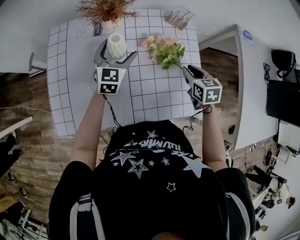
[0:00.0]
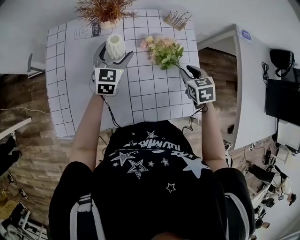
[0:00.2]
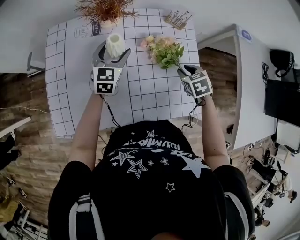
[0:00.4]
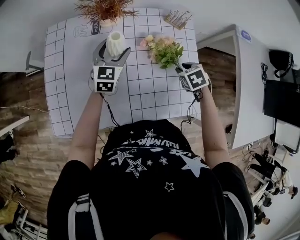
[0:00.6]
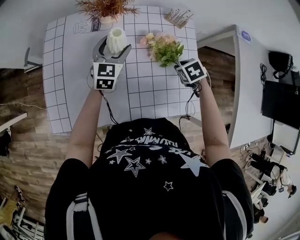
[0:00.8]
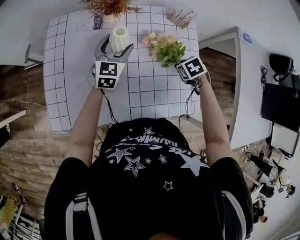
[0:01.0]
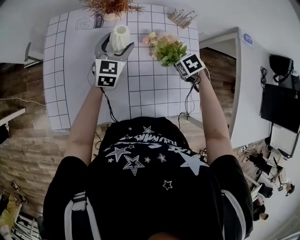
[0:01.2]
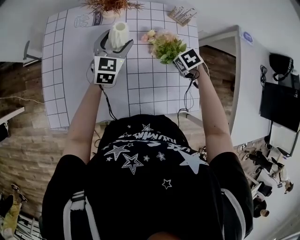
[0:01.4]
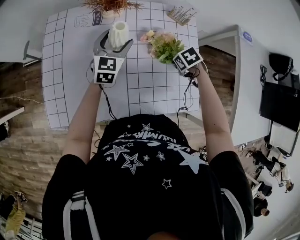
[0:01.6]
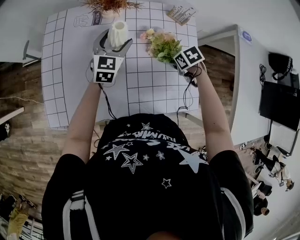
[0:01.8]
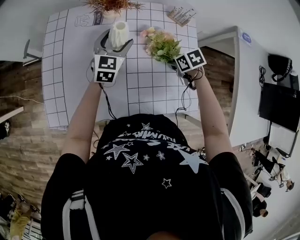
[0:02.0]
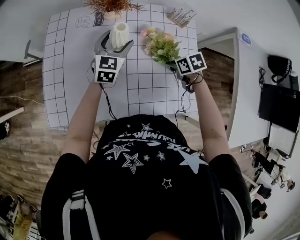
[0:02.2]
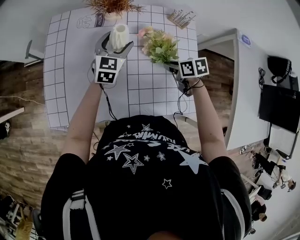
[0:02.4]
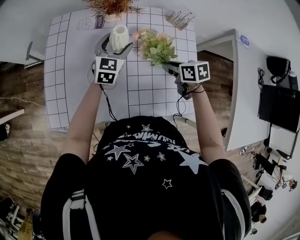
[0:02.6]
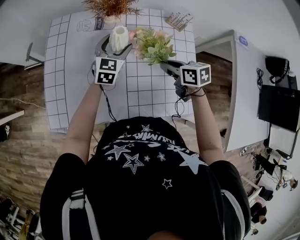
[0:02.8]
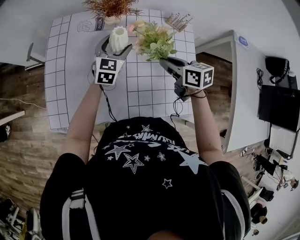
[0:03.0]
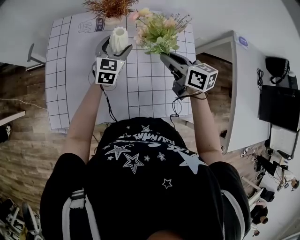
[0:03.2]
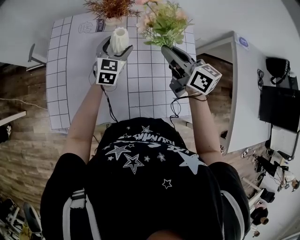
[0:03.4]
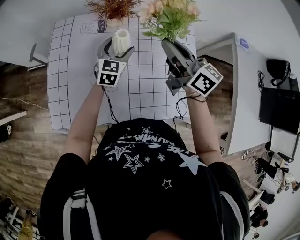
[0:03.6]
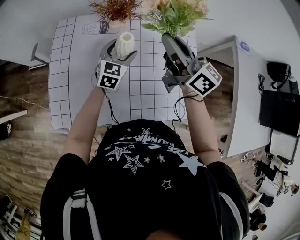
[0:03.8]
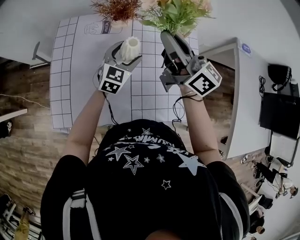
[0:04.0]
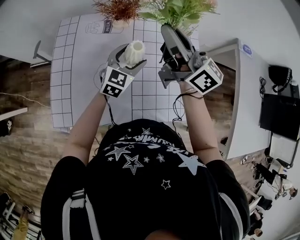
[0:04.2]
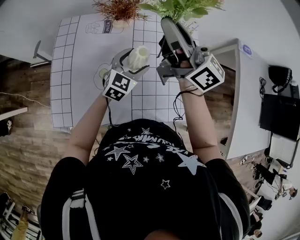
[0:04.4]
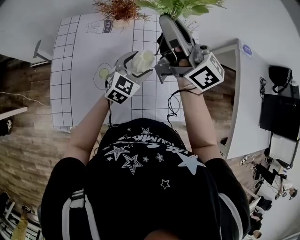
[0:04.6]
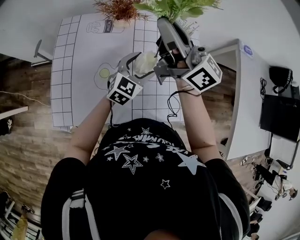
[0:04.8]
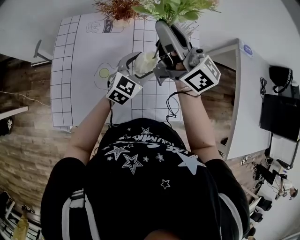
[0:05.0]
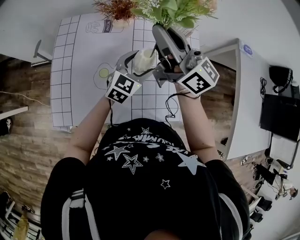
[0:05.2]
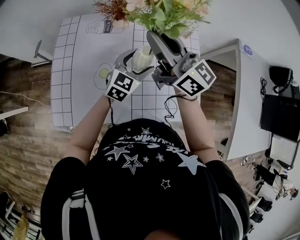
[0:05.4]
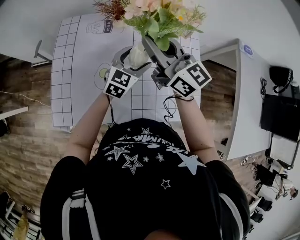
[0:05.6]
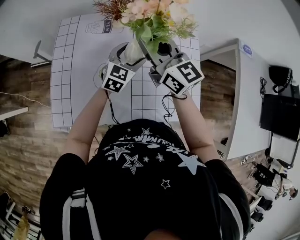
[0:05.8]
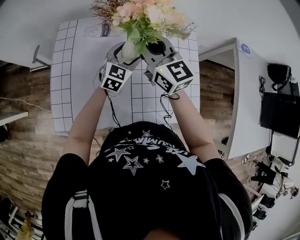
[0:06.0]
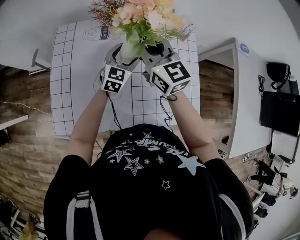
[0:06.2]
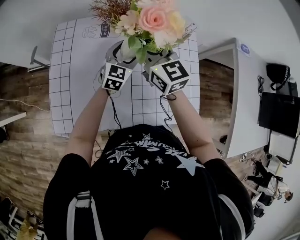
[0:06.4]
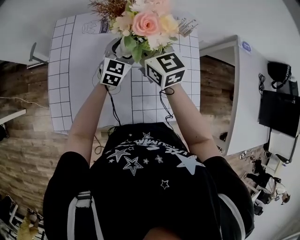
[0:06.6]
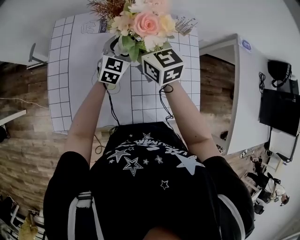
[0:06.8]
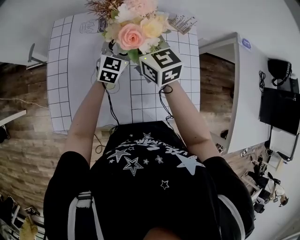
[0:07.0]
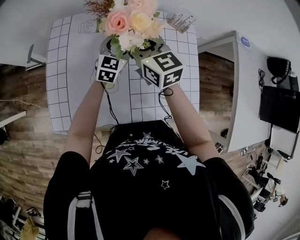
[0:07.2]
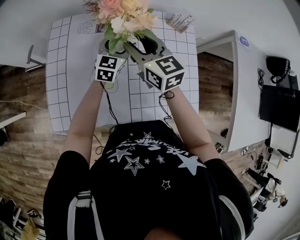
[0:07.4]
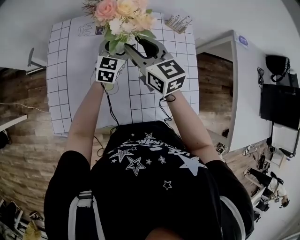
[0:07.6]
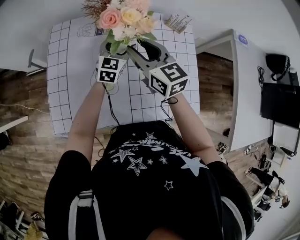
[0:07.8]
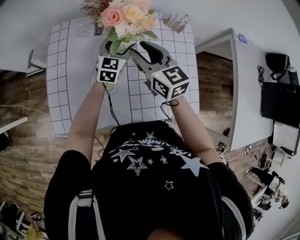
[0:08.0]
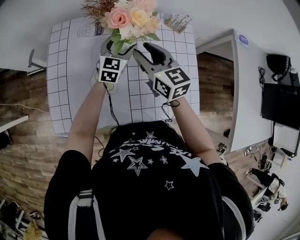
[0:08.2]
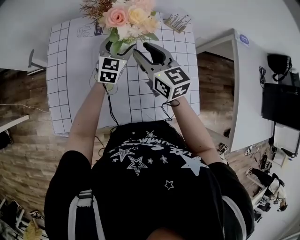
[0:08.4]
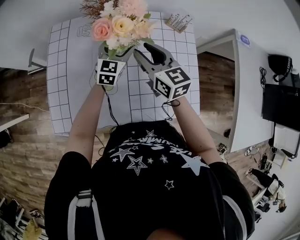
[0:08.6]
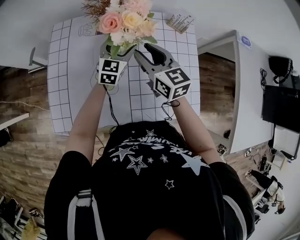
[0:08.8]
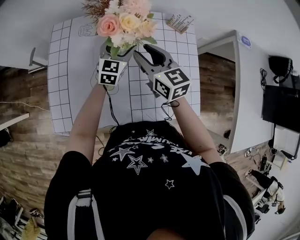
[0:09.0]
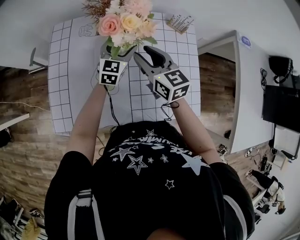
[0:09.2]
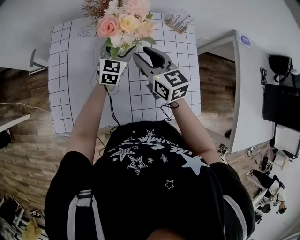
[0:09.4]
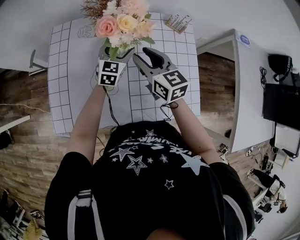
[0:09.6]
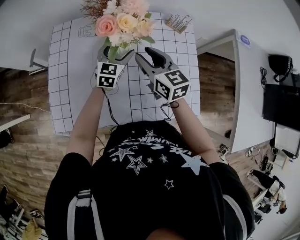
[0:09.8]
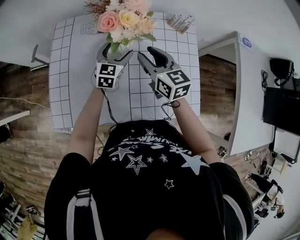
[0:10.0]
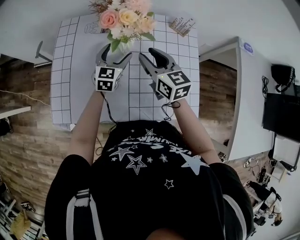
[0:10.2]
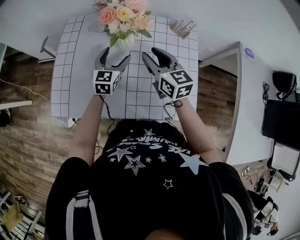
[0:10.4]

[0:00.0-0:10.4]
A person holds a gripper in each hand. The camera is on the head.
0:00.0 to 0:01.4: The right gripper moves downward, approximately 10 cm, and angles its fingers downward, by some 40 degrees.
0:01.4 to 0:03.0: The right gripper heads upward, covering some 15 cm, and angles its fingers upward, by roughly 50 degrees.
0:03.0 to 0:04.4: The left gripper goes approximately 5 cm backward, while the right gripper goes about 25 cm upward, and tilts its fingers about 50 degrees upward.
0:04.4 to 0:06.0: The left gripper moves forward, about 5 cm, while the right gripper is displaced downward by some 10 cm, and changes its angle by some 40 degrees.
0:06.0 to 0:07.4: The right gripper opens up.
0:07.4 to 0:09.0: The right gripper changes place by roughly 5 cm.
0:09.0 to 0:10.4: The left gripper goes some 5 cm backward.

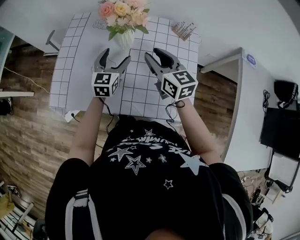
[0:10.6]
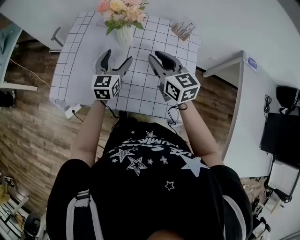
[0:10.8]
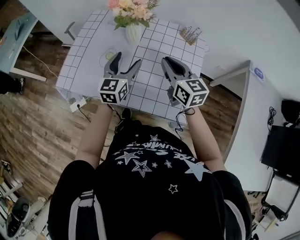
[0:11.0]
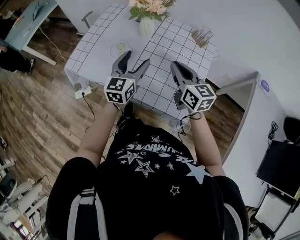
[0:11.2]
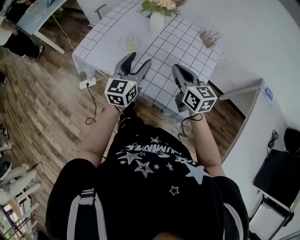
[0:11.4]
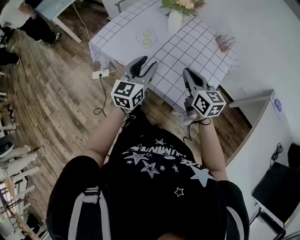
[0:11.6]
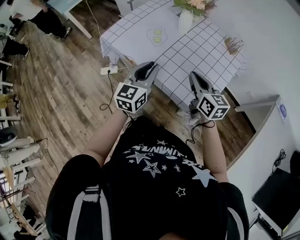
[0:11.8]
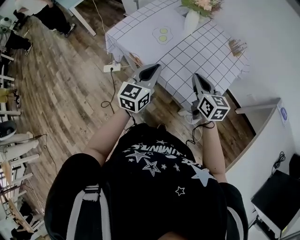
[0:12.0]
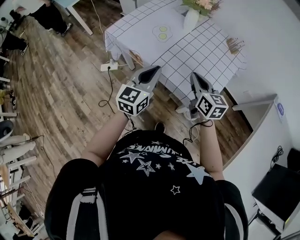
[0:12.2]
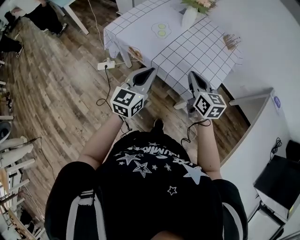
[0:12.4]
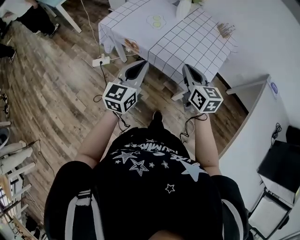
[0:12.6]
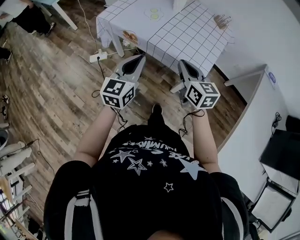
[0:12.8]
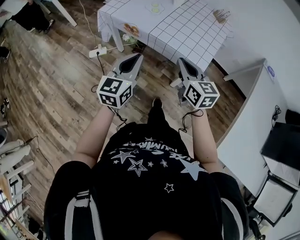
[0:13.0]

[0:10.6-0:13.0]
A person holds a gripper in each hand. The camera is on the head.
0:10.6 to 0:11.8: The two grippers go approximately 25 cm backward. The right gripper turns by some 20 degrees, and closes, while the left gripper changes its angle by roughly 20 degrees, and closes.
0:11.8 to 0:13.0: The two grippers go roughly 20 cm backward and to the left.

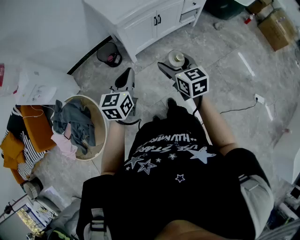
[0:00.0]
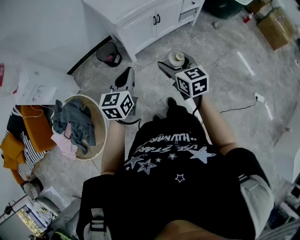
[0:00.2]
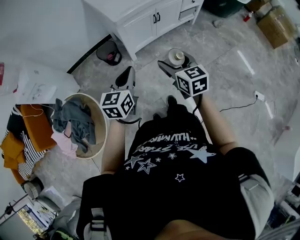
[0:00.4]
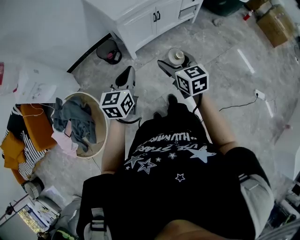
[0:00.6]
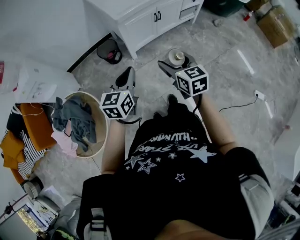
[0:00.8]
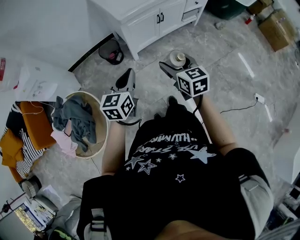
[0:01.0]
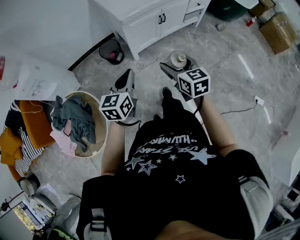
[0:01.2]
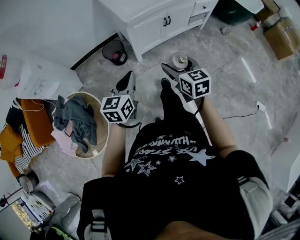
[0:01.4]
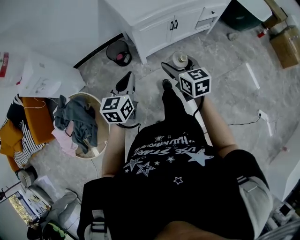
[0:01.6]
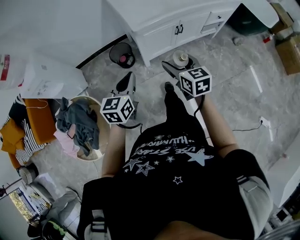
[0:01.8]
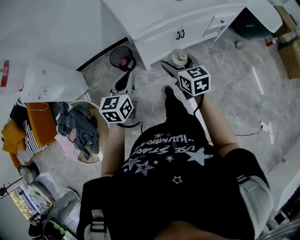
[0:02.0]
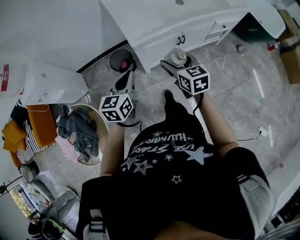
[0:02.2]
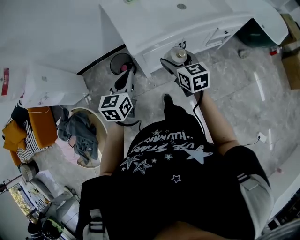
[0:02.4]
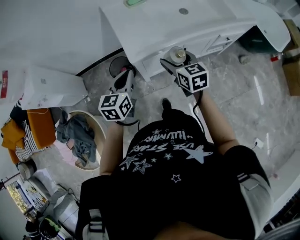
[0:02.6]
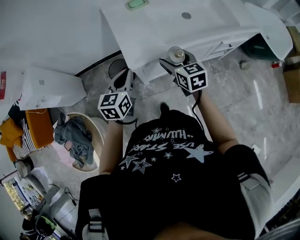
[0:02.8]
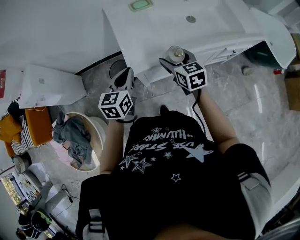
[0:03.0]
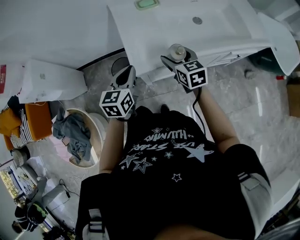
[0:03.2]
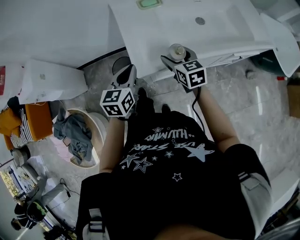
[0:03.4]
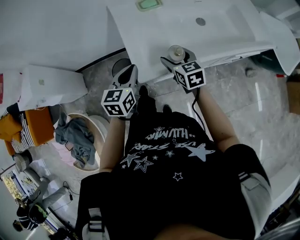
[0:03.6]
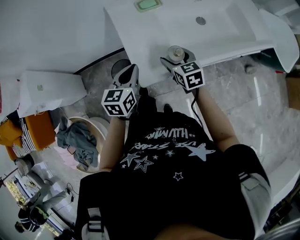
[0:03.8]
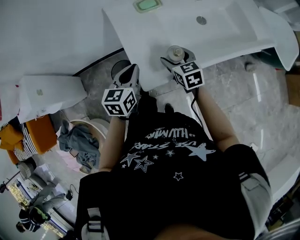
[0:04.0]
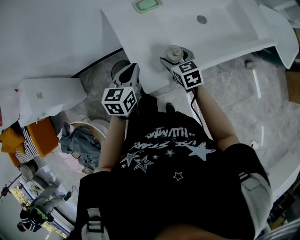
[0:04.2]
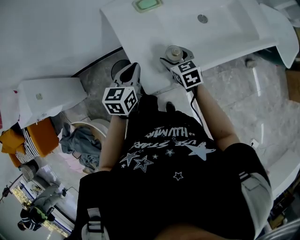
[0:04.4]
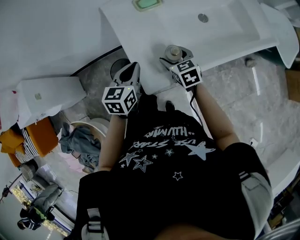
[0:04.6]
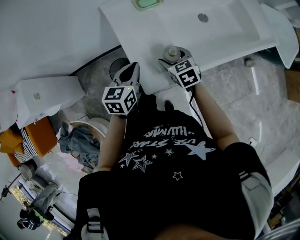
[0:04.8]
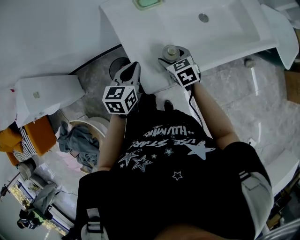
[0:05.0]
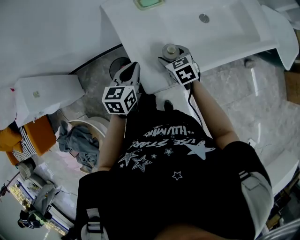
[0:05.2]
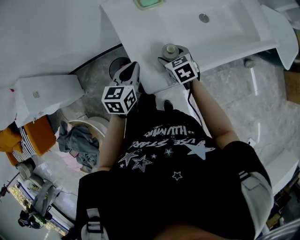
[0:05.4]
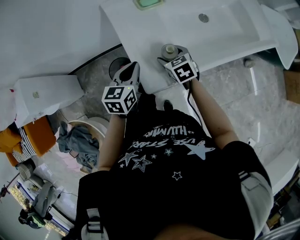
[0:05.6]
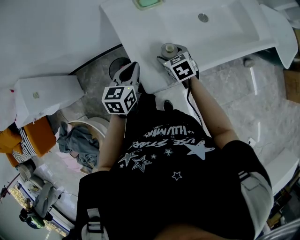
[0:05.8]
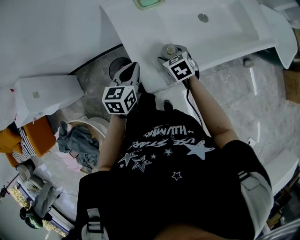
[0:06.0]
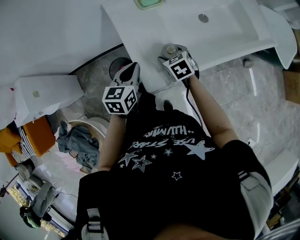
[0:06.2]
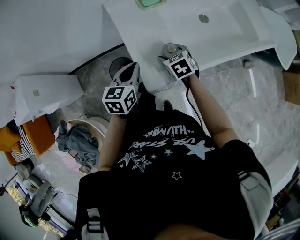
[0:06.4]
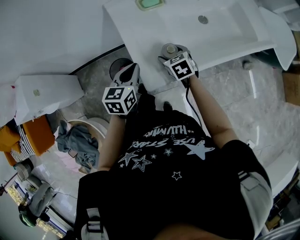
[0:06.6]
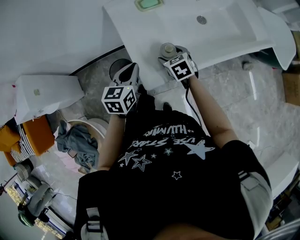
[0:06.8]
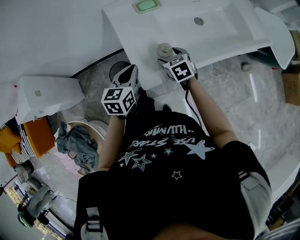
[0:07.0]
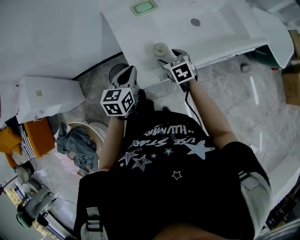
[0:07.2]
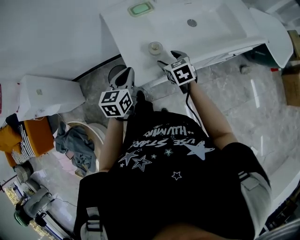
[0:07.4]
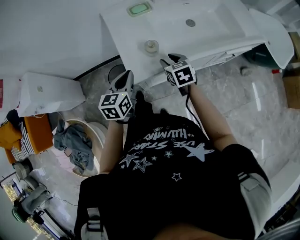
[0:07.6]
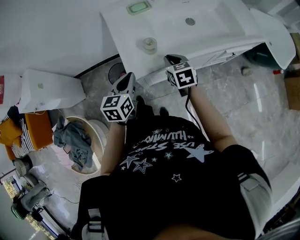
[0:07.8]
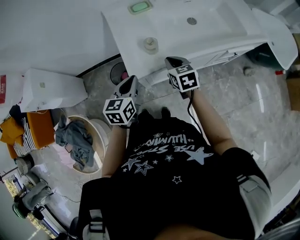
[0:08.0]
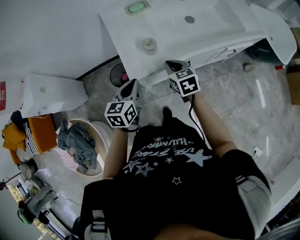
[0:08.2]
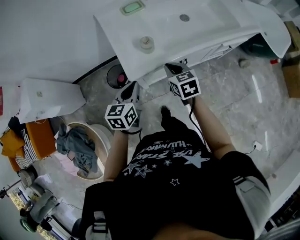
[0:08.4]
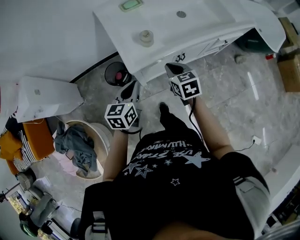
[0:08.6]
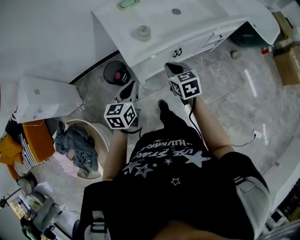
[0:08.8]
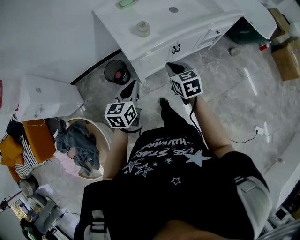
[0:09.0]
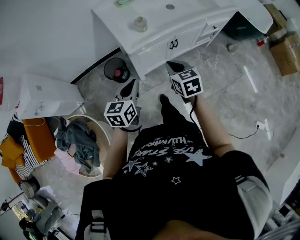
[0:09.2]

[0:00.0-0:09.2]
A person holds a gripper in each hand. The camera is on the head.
0:00.0 to 0:01.6: The left gripper goes some 10 cm to the left and forward; the right gripper travels forward by approximately 10 cm.
0:01.6 to 0:03.0: The grippers both shift forward by roughly 35 cm.
0:03.0 to 0:04.6: The right gripper goes about 15 cm forward, downward and to the left. The left gripper goes roughly 15 cm forward.
0:04.6 to 0:06.2: There are only small adjustments of the grippers.
0:06.2 to 0:07.6: The left gripper moves backward, some 10 cm; the right gripper heads backward, to the right and upward, covering roughly 15 cm, and closes up.
0:07.6 to 0:09.2: Both grippers travel together backward, approximately 25 cm. The right gripper closes its fingers.

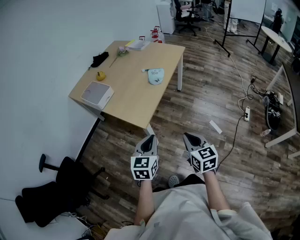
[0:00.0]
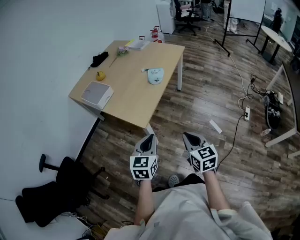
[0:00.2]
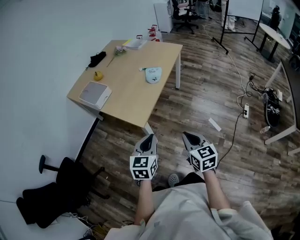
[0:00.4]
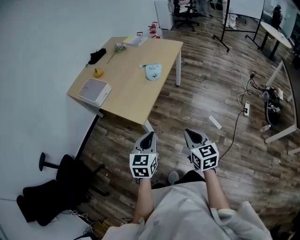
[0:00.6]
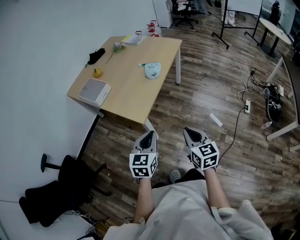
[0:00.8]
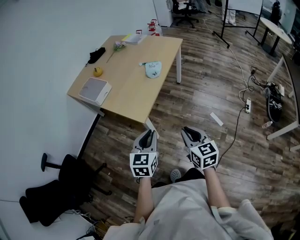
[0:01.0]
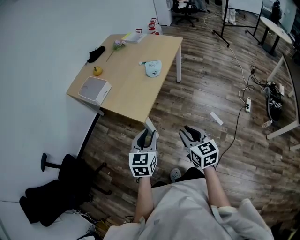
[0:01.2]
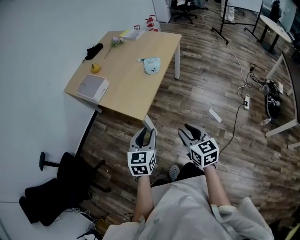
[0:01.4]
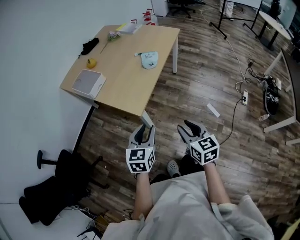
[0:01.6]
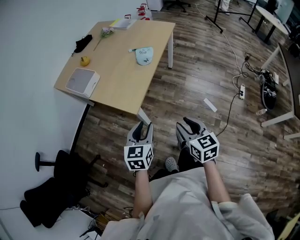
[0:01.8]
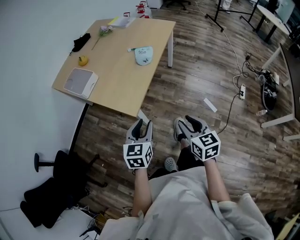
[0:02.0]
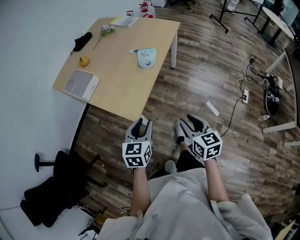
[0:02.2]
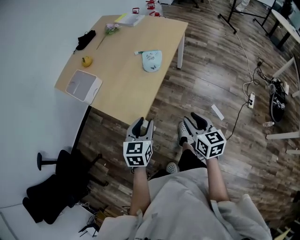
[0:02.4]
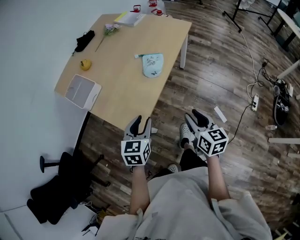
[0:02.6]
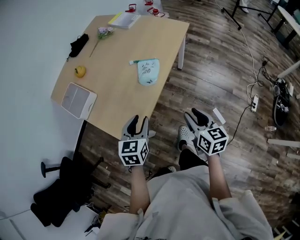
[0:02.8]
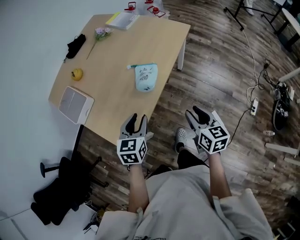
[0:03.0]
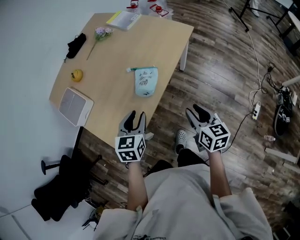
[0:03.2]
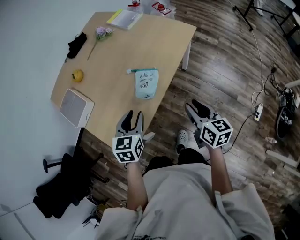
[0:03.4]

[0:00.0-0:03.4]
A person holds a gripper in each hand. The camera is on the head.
0:00.0 to 0:01.6: The right gripper opens its fingers; the left gripper opens.
0:01.6 to 0:03.4: The pair of grippers is taken forward, about 50 cm.
